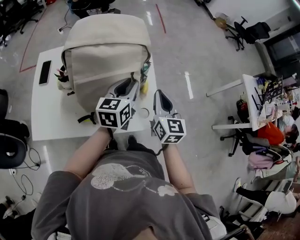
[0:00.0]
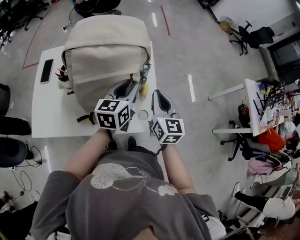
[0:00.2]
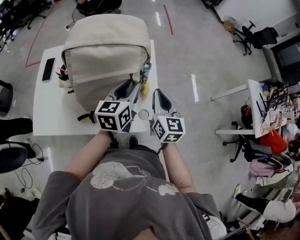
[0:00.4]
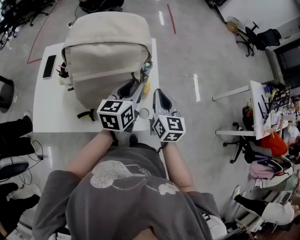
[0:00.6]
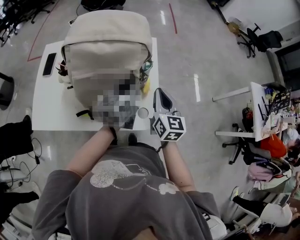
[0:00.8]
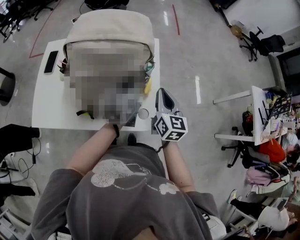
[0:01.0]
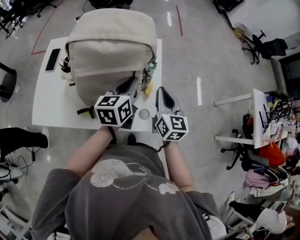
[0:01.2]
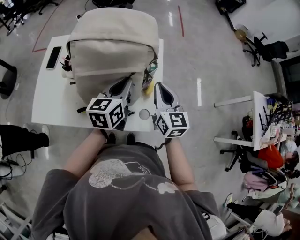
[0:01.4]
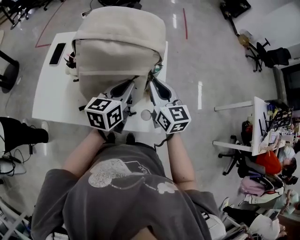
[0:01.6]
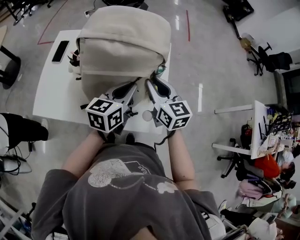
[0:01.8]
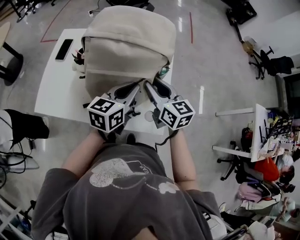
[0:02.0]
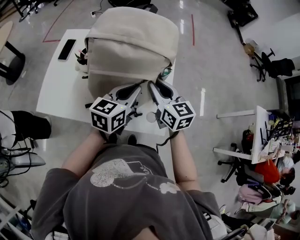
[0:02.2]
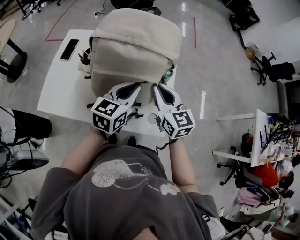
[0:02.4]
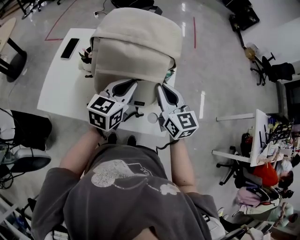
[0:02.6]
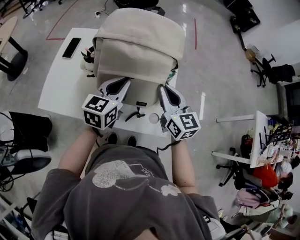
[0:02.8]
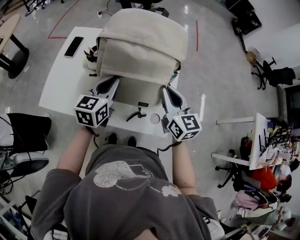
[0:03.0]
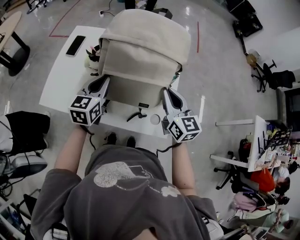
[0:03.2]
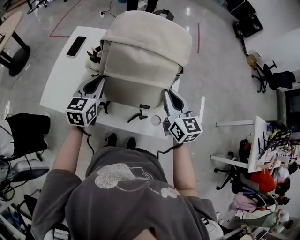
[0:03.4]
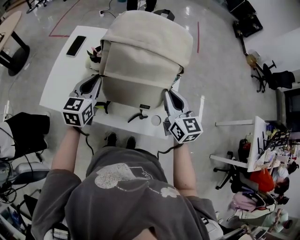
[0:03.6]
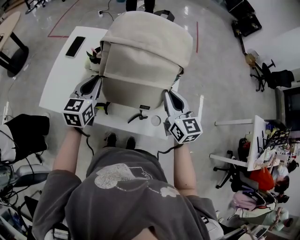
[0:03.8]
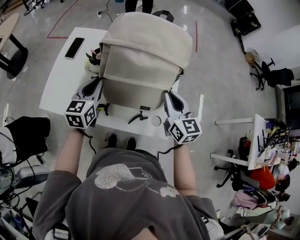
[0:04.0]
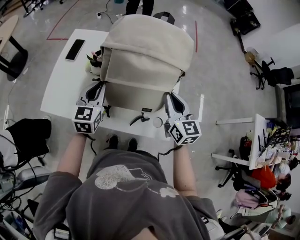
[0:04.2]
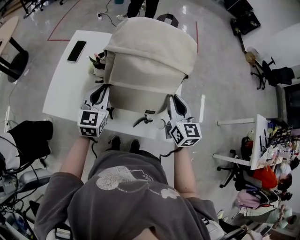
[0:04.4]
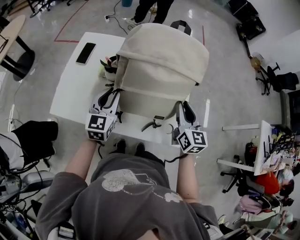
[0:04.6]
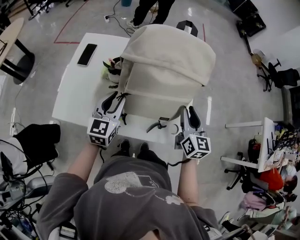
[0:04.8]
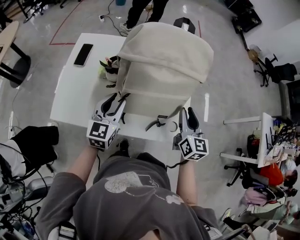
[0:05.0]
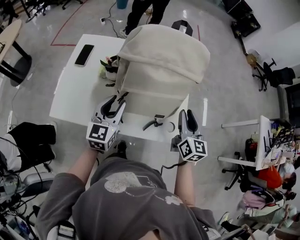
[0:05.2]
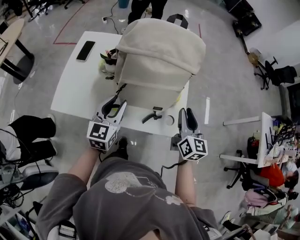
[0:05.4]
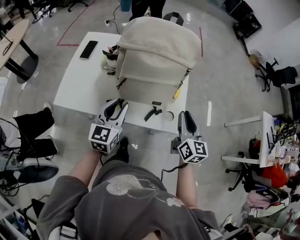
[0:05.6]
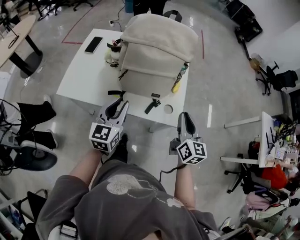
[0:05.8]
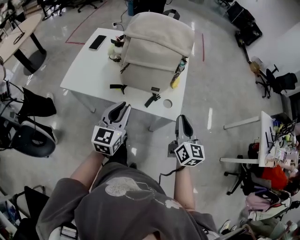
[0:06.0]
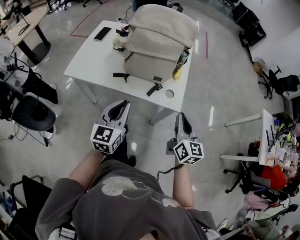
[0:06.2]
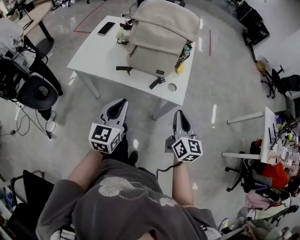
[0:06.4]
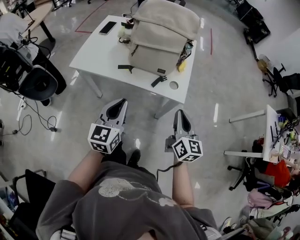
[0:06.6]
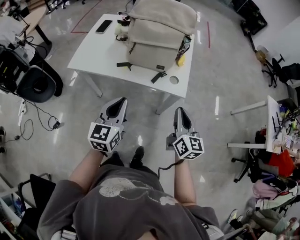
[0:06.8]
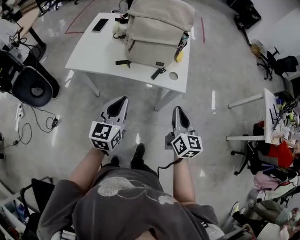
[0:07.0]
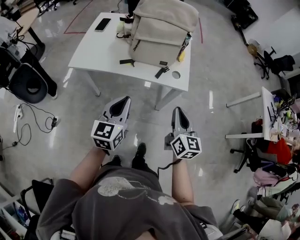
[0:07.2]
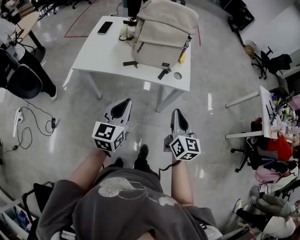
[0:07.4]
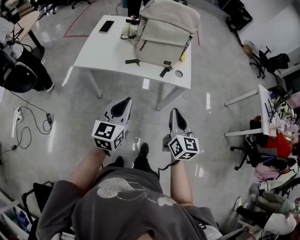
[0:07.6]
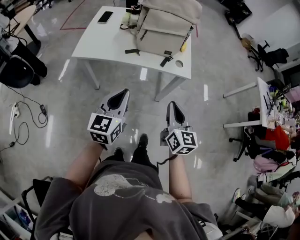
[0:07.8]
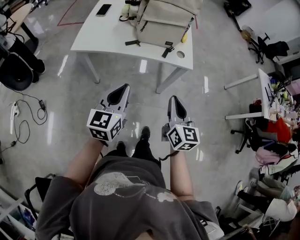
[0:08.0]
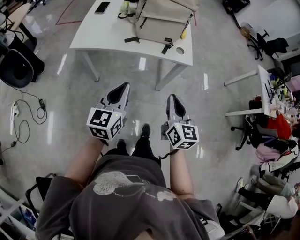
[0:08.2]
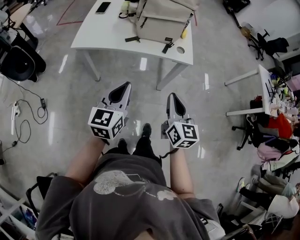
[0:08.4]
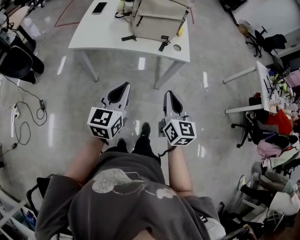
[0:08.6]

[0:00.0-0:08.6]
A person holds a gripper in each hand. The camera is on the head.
0:00.0 to 0:01.4: There are only small adjustments of the grippers.
0:01.4 to 0:02.8: The grippers both shift to the left by roughly 5 cm. The right gripper opens and closes again.
0:02.8 to 0:04.4: The left gripper shifts approximately 15 cm to the left.
0:04.4 to 0:05.8: Both grippers travel together backward, about 15 cm.
0:05.8 to 0:07.2: The grippers both shift backward by about 20 cm. The left gripper closes.
0:07.2 to 0:08.6: The right gripper goes roughly 15 cm backward and to the left. The left gripper is displaced backward by some 10 cm.

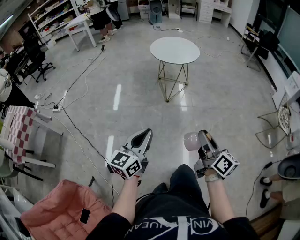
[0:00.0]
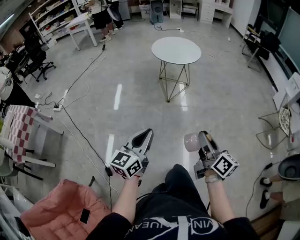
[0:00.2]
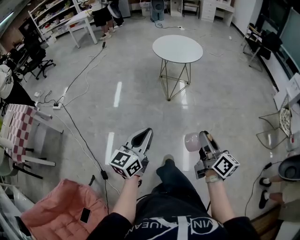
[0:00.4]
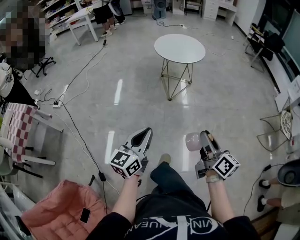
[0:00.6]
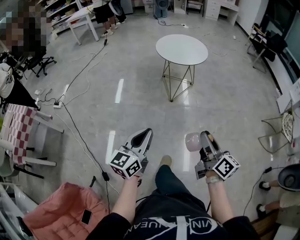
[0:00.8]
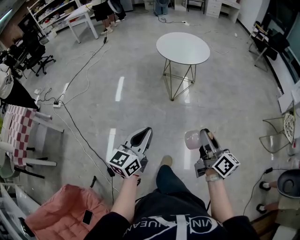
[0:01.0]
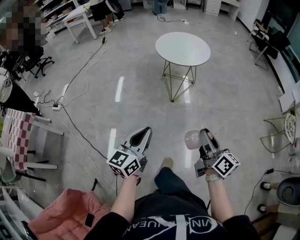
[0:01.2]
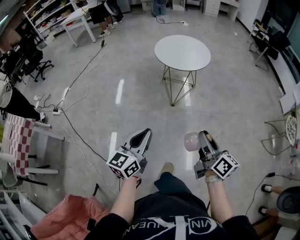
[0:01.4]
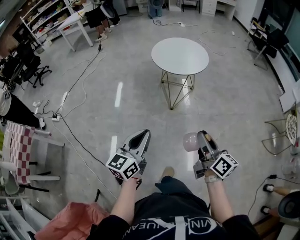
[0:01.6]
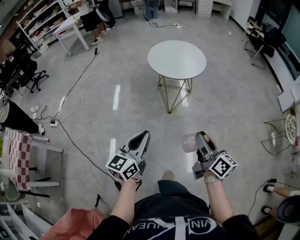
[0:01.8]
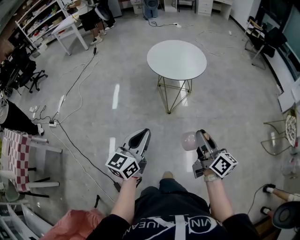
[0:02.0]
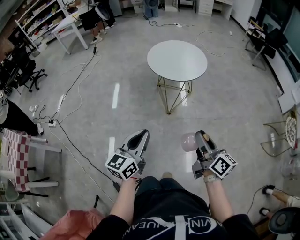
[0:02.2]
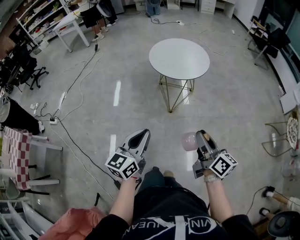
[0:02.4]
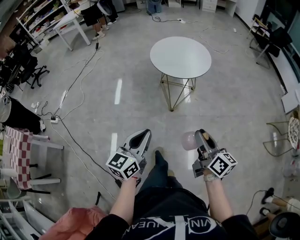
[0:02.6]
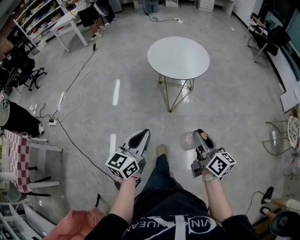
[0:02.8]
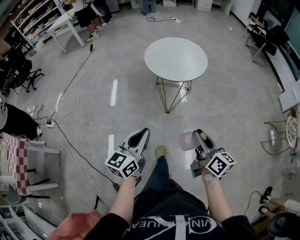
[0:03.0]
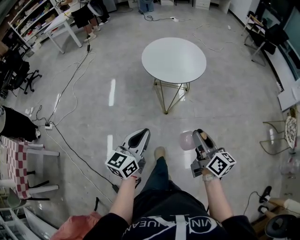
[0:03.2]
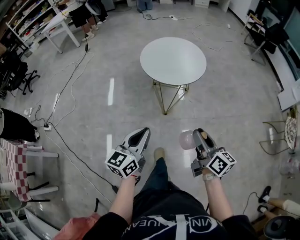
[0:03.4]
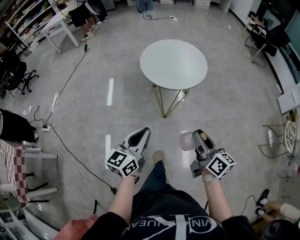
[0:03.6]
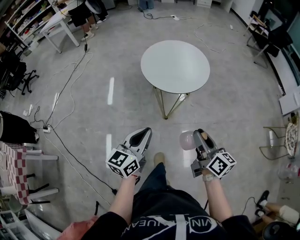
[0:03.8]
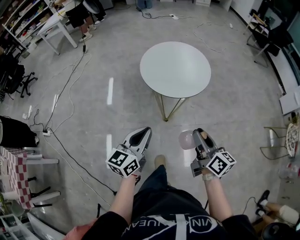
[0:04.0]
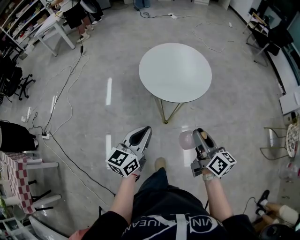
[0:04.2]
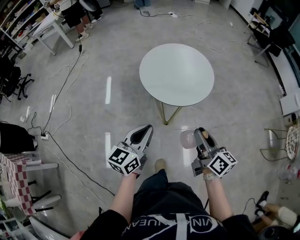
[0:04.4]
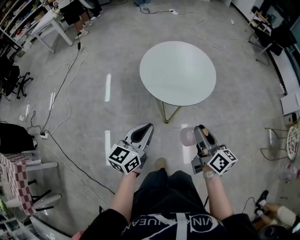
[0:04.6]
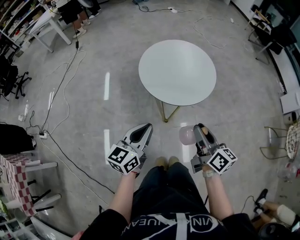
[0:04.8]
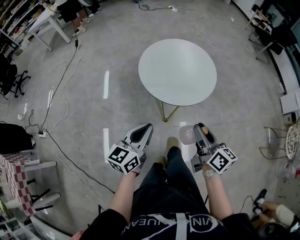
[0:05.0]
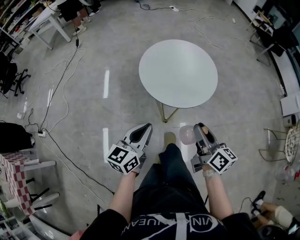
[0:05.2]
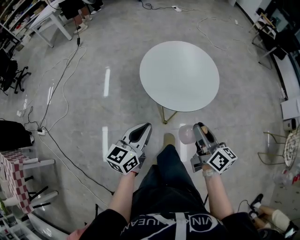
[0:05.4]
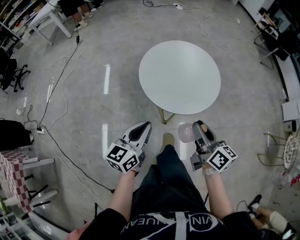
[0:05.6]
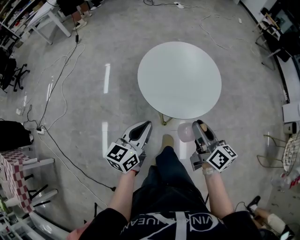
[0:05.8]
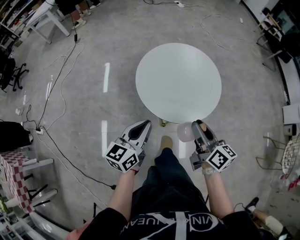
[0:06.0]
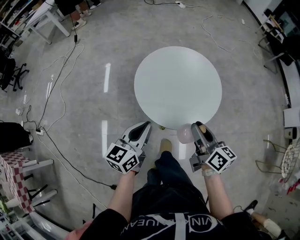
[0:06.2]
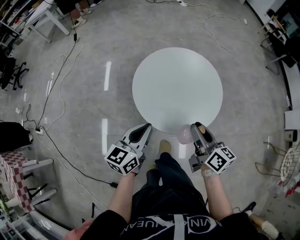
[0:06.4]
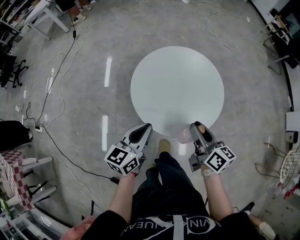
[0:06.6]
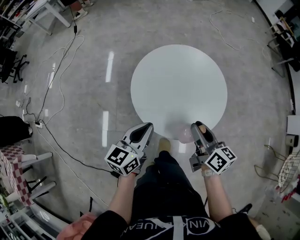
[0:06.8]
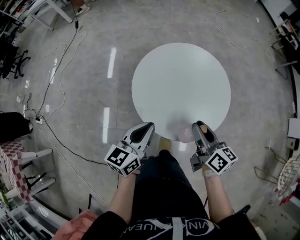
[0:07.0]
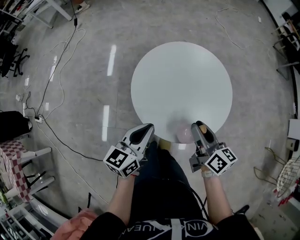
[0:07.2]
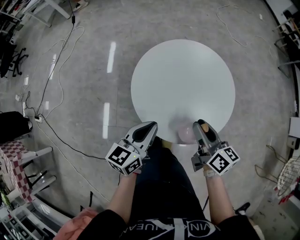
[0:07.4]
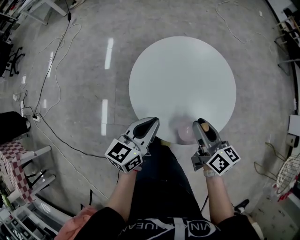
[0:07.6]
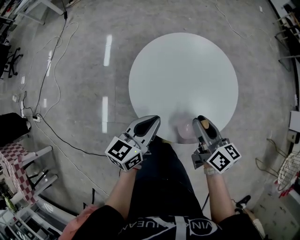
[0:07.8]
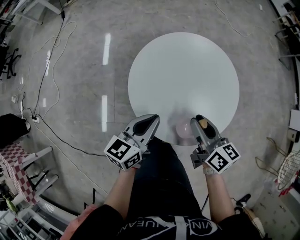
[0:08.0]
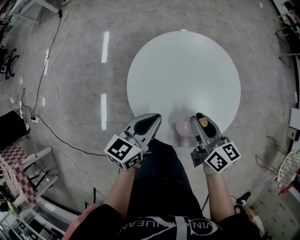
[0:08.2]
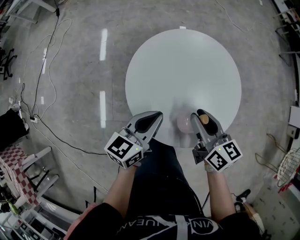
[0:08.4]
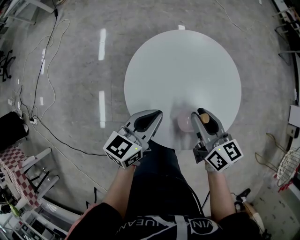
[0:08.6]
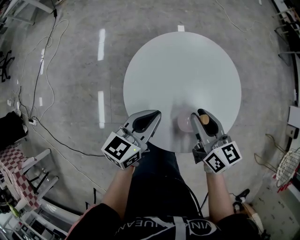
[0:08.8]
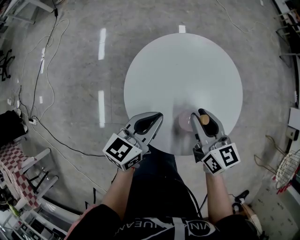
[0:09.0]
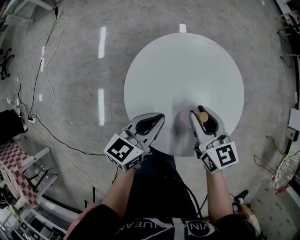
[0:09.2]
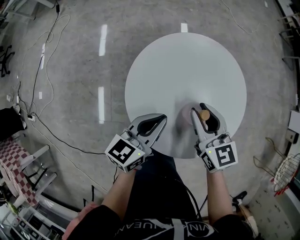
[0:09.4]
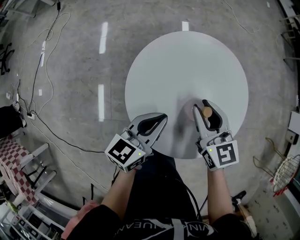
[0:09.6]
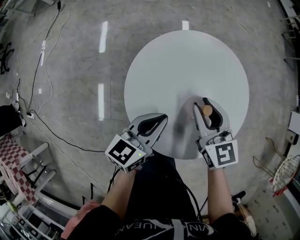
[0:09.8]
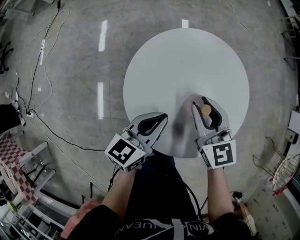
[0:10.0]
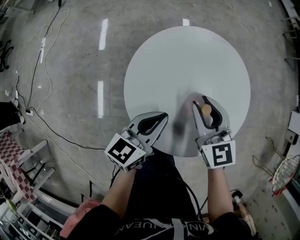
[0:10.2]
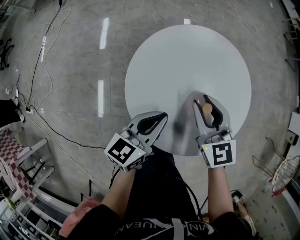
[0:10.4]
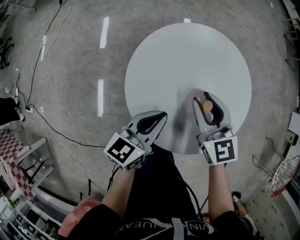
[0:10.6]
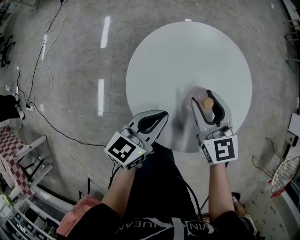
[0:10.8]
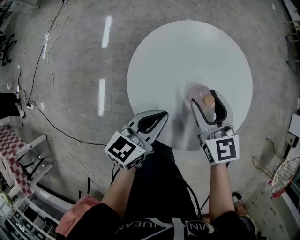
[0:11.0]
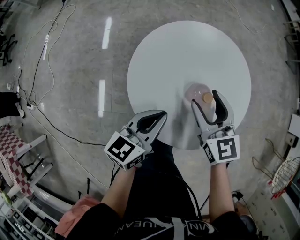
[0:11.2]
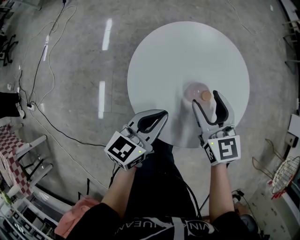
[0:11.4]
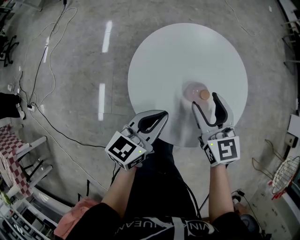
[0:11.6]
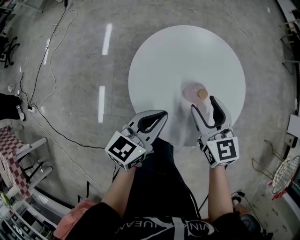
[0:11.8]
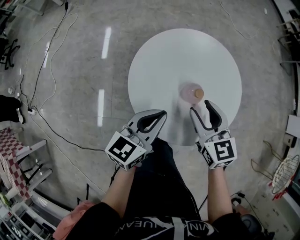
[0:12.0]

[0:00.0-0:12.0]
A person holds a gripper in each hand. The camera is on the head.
0:00.0 to 0:01.6: The two grippers go roughly 20 cm forward.
0:01.6 to 0:03.0: The grippers both shift forward by approximately 10 cm.
0:03.0 to 0:04.4: The grippers both shift forward by approximately 25 cm.
0:04.4 to 0:06.0: Both grippers move forward, approximately 15 cm.
0:06.0 to 0:07.6: Both grippers travel together forward and downward, some 15 cm.
0:07.6 to 0:09.0: Both grippers move forward, approximately 5 cm.
0:09.0 to 0:10.4: The right gripper swivels roughly 30 degrees.
0:10.4 to 0:12.0: The left gripper goes approximately 5 cm upward. The right gripper shifts roughly 5 cm backward, and opens.

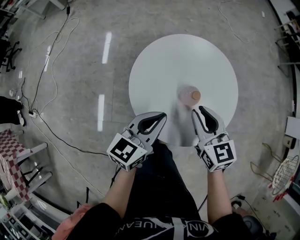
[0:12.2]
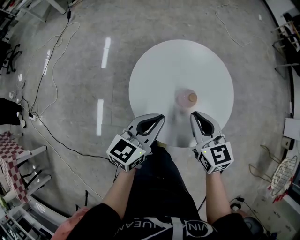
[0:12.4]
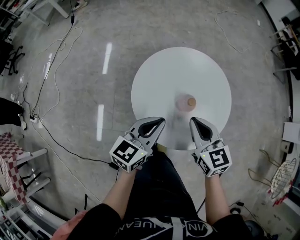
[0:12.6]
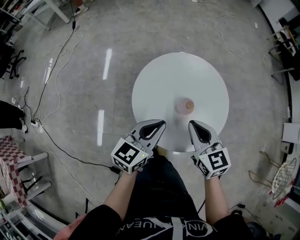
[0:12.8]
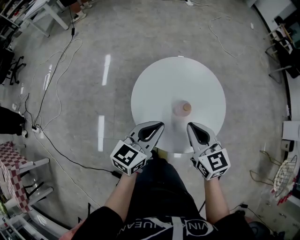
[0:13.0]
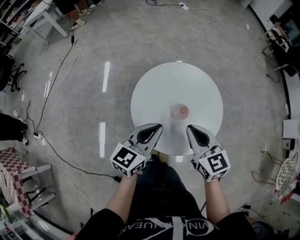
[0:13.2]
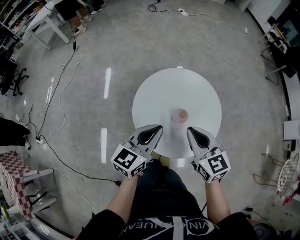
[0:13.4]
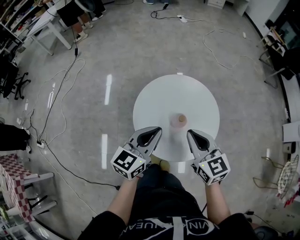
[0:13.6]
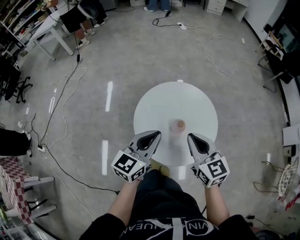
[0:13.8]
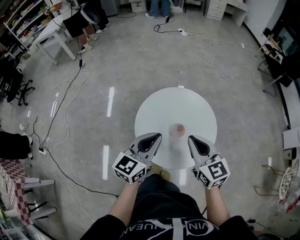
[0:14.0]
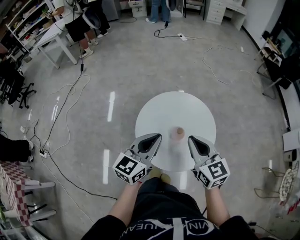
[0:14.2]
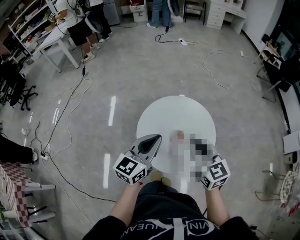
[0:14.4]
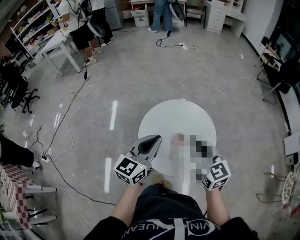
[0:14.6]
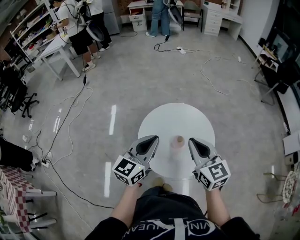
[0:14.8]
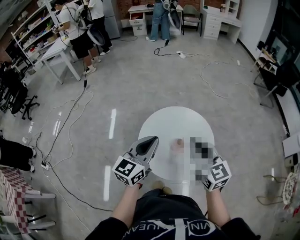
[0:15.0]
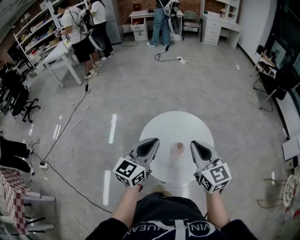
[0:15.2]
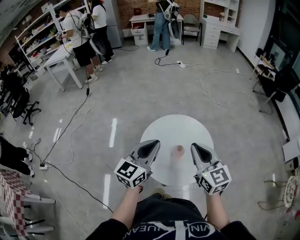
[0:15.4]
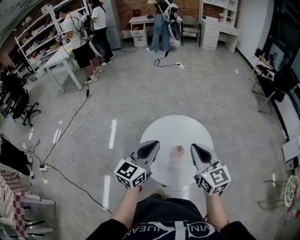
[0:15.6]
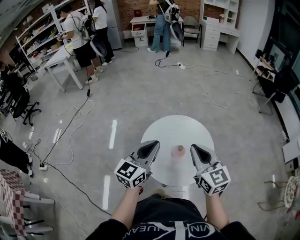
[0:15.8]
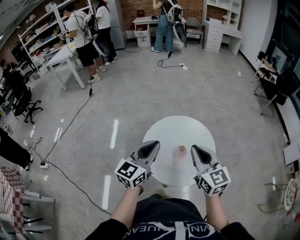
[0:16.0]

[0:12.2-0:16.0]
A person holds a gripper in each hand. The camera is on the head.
0:12.2 to 0:13.4: Both grippers move upward, about 10 cm. The right gripper closes.
0:13.4 to 0:14.8: The grippers both shift upward by approximately 10 cm.
0:14.8 to 0:16.0: The grippers move only a little.
